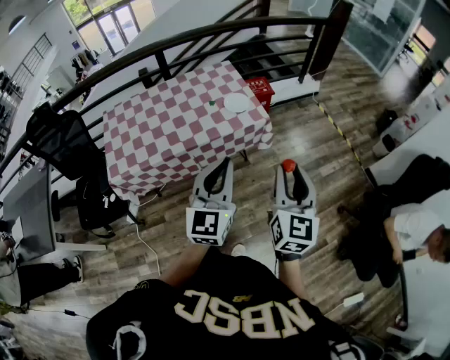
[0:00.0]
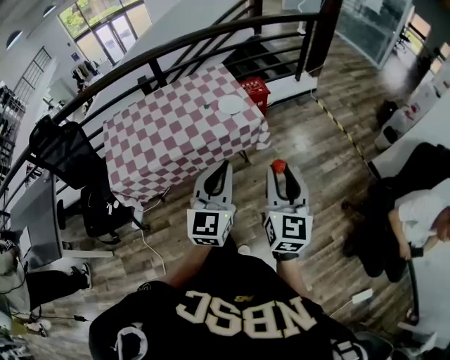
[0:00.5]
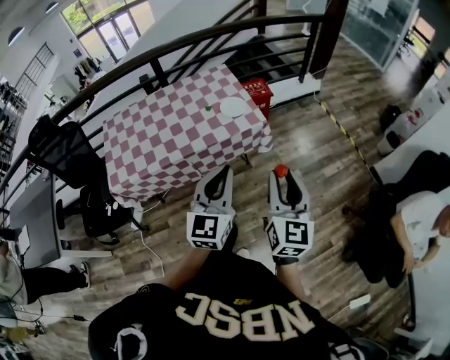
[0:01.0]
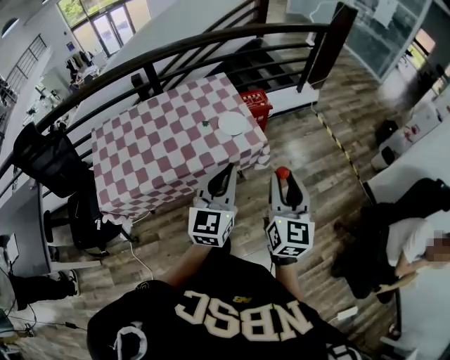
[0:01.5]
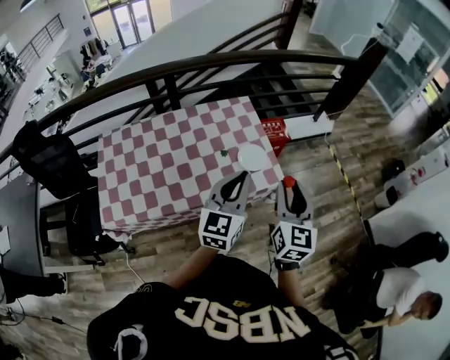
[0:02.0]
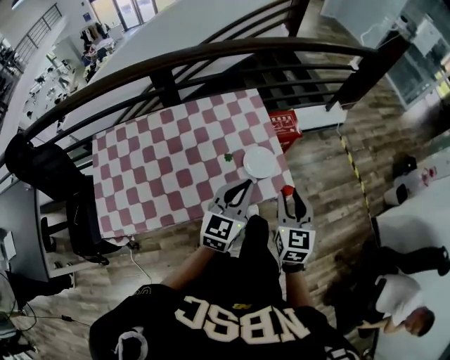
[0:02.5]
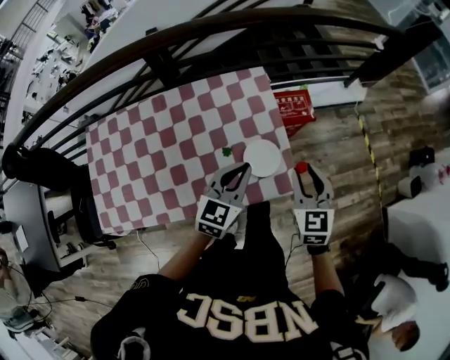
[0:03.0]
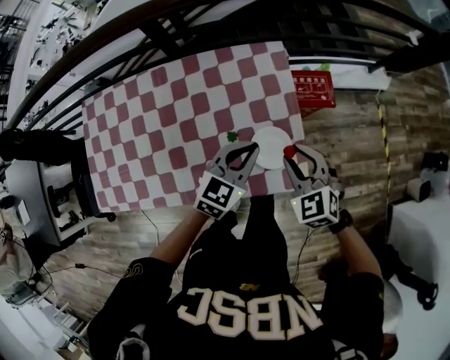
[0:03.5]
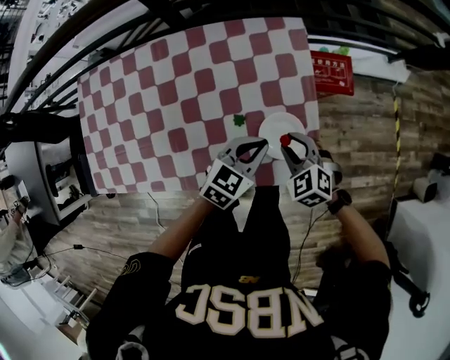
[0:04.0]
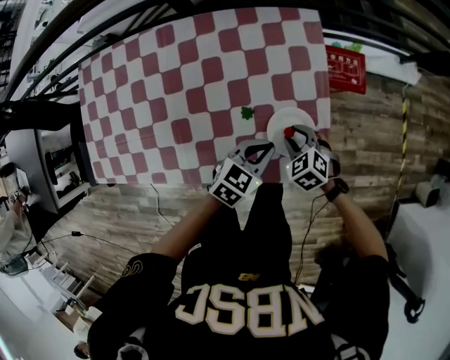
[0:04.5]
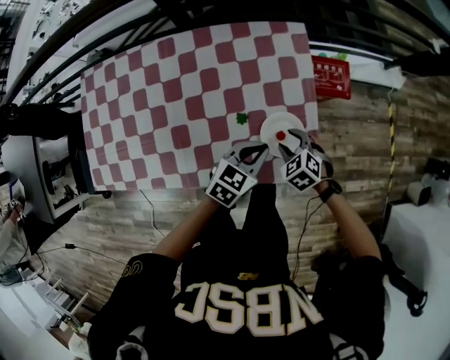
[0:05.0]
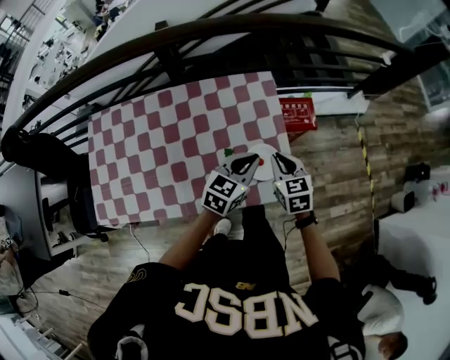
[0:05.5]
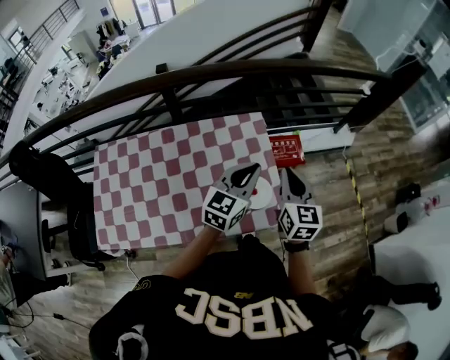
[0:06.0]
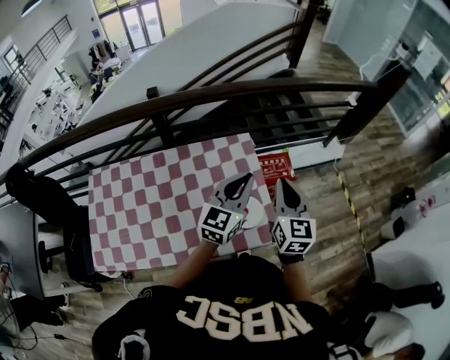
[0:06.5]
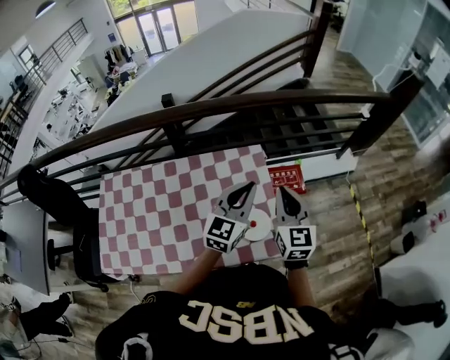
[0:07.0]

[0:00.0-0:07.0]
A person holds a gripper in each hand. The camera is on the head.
0:00.0 to 0:02.0: Both grippers move forward, about 30 cm.
0:02.0 to 0:03.5: Both grippers travel together forward and downward, approximately 35 cm. The left gripper changes its angle by roughly 30 degrees; the right gripper tips its fingers downward by some 30 degrees.
0:03.5 to 0:05.0: The left gripper moves downward, roughly 10 cm. Meanwhile the right gripper is displaced downward by some 20 cm, and rotates approximately 20 degrees.
0:05.0 to 0:07.0: The grippers both shift upward by about 35 cm. The right gripper points its fingers roughly 50 degrees further upward, and closes its fingers; the left gripper tilts its fingers some 30 degrees upward.

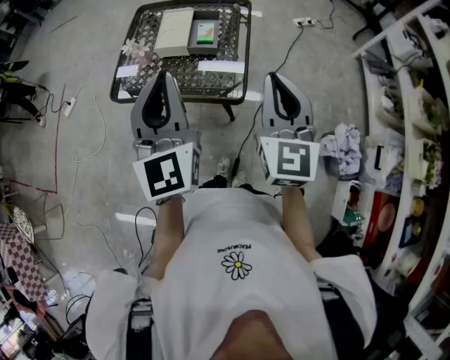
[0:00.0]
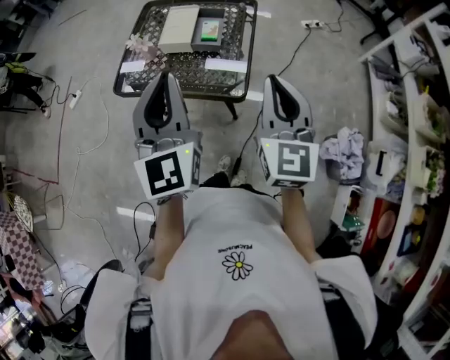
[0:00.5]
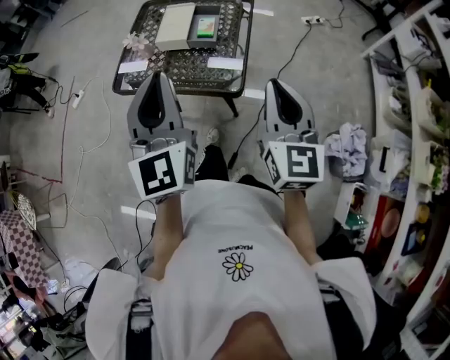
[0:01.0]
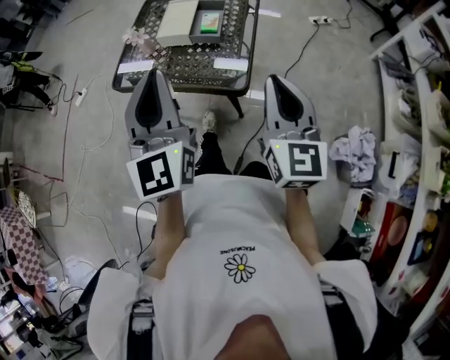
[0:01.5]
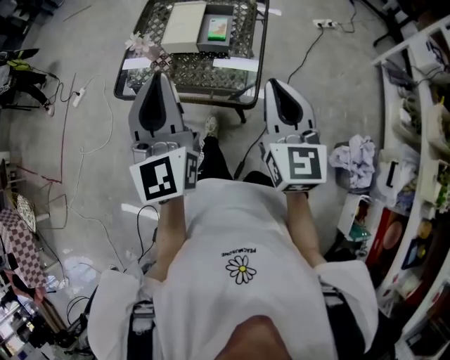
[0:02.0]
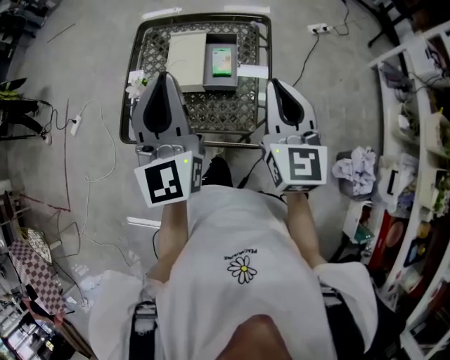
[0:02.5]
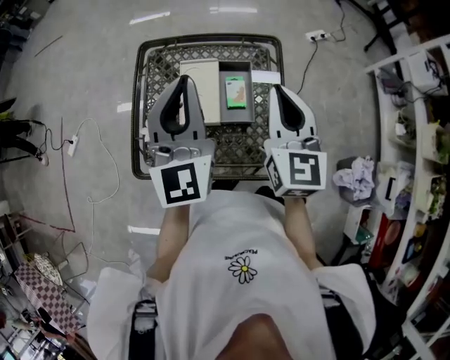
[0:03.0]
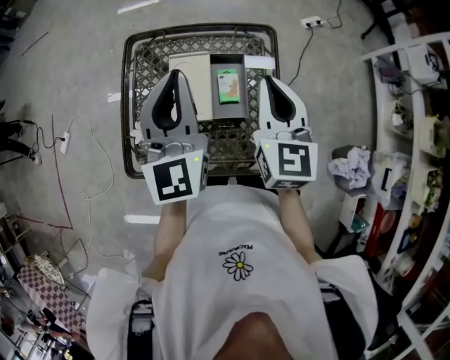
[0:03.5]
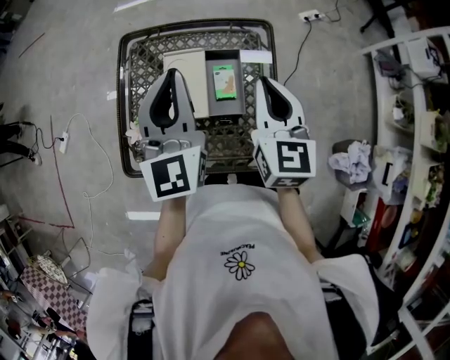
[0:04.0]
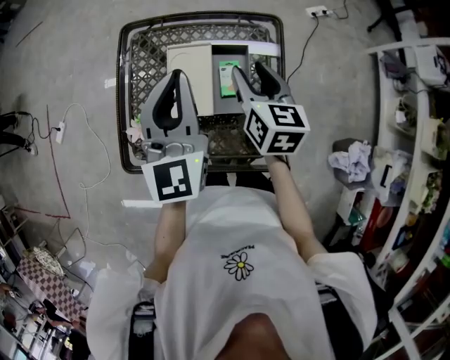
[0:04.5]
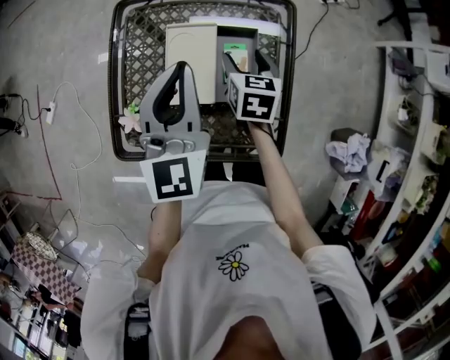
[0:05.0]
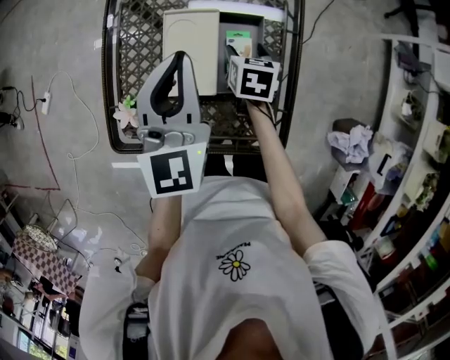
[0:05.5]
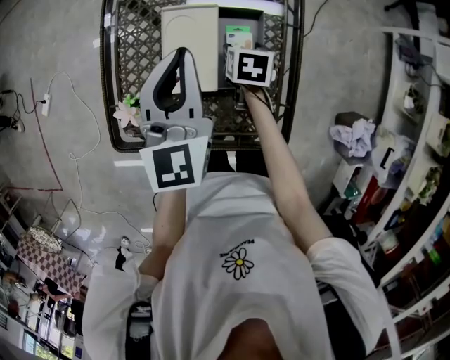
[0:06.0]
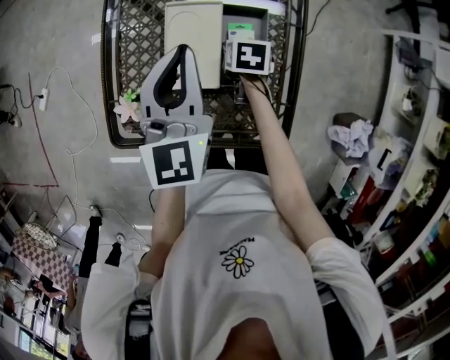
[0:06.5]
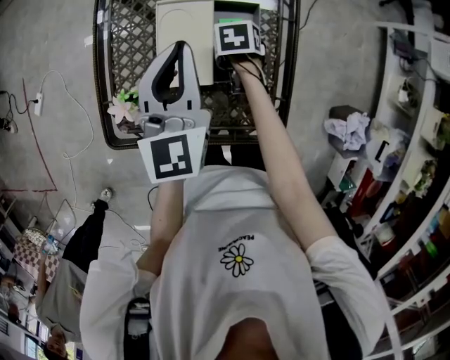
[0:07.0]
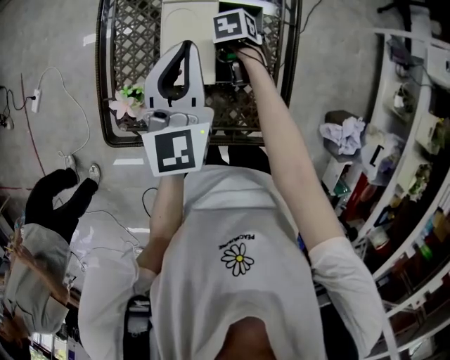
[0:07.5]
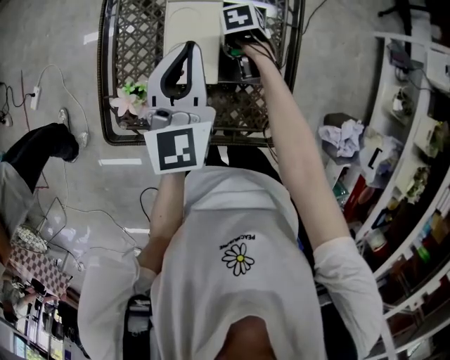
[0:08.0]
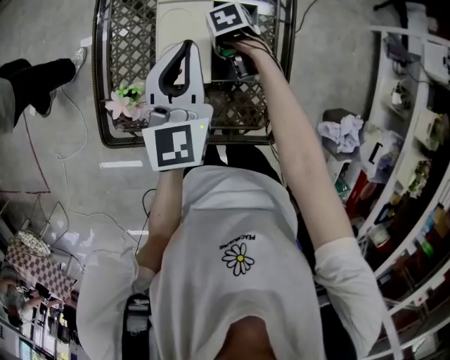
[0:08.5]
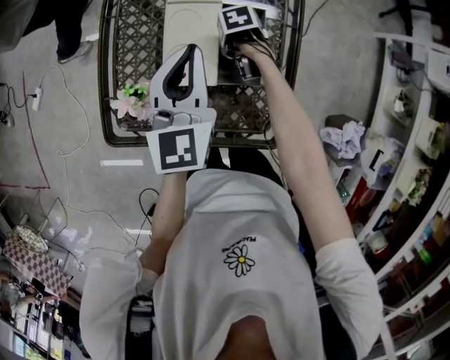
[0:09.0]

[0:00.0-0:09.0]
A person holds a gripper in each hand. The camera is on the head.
0:00.0 to 0:02.0: The right gripper shifts roughly 5 cm downward. Meanwhile the left gripper ends up about 5 cm from where it was.
0:02.0 to 0:04.5: Both grippers travel together forward, some 35 cm. The right gripper turns by approximately 30 degrees, and opens its fingers.
0:04.5 to 0:07.0: The left gripper goes some 10 cm downward; the right gripper is displaced downward by some 25 cm, and angles its fingers downward, by approximately 50 degrees.
0:07.0 to 0:09.0: The grippers stay close to where they were, moving slightly.

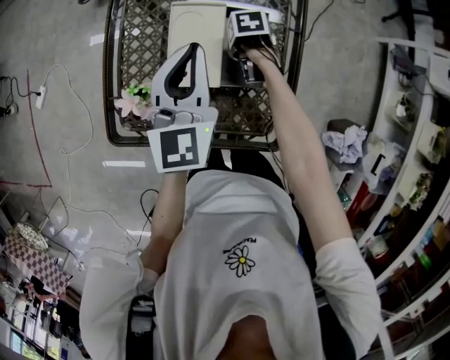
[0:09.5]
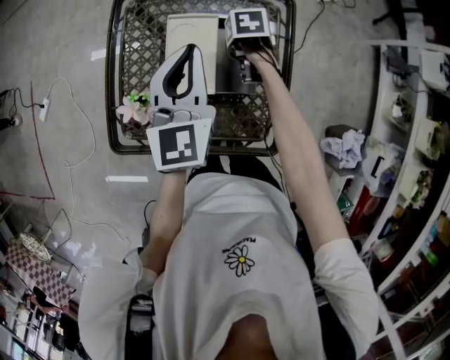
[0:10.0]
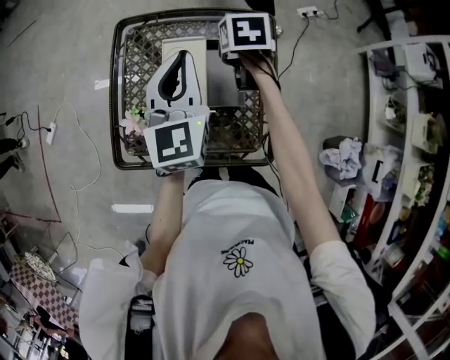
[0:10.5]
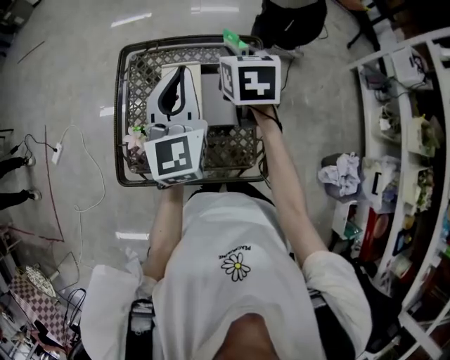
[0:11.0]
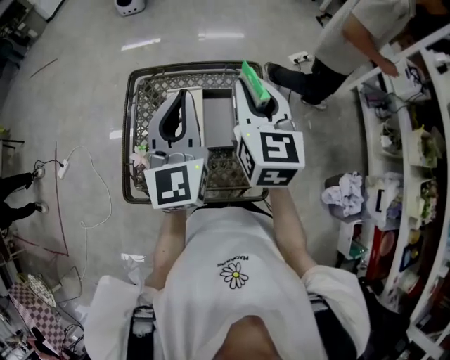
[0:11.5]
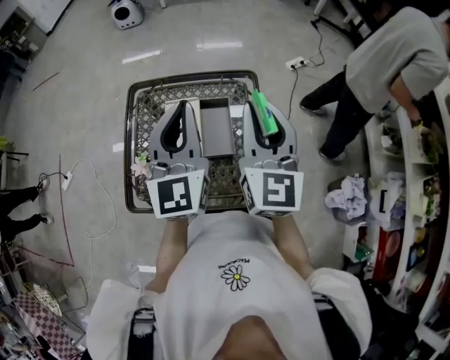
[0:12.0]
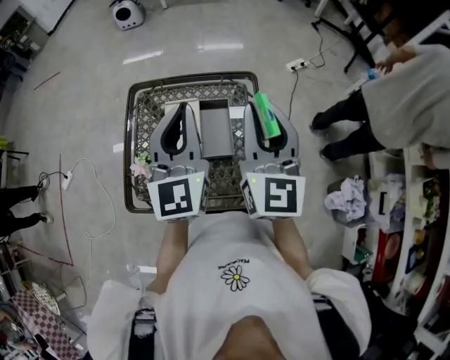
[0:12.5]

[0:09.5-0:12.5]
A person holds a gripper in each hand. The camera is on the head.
0:09.5 to 0:11.0: The right gripper is displaced upward by about 35 cm, and tips its fingers upward by roughly 40 degrees. Meanwhile the left gripper travels upward by roughly 15 cm.
0:11.0 to 0:12.5: The right gripper moves upward, backward and to the right, some 20 cm, and angles its fingers upward, by approximately 40 degrees; the left gripper is displaced upward by roughly 5 cm.

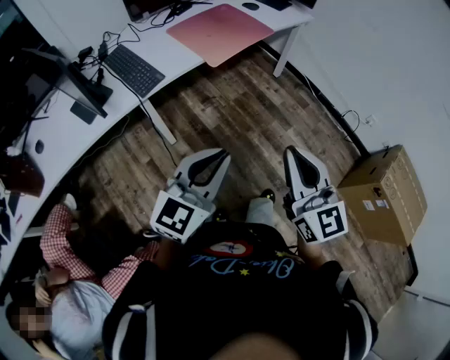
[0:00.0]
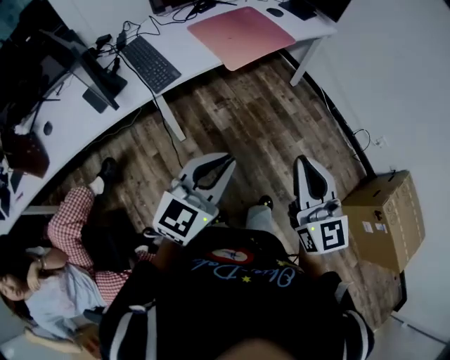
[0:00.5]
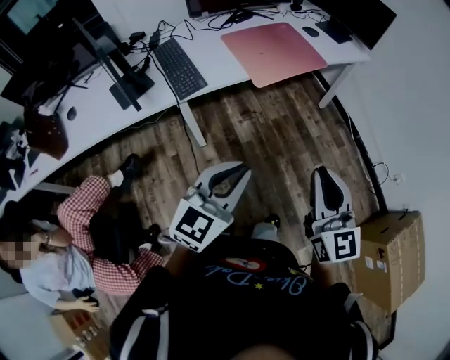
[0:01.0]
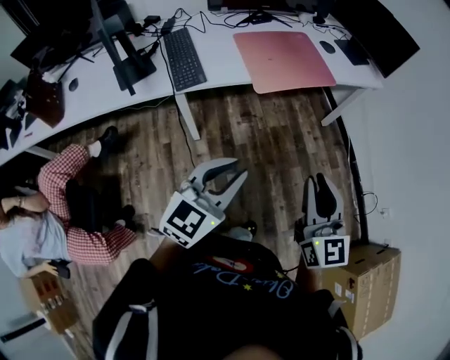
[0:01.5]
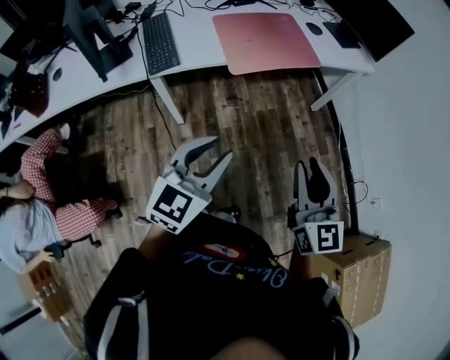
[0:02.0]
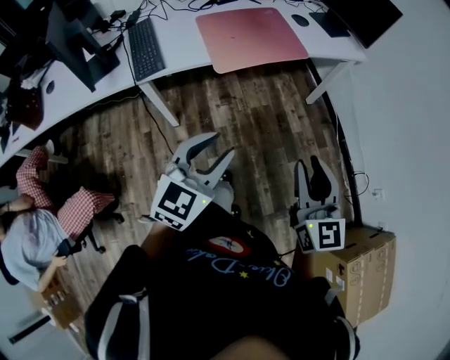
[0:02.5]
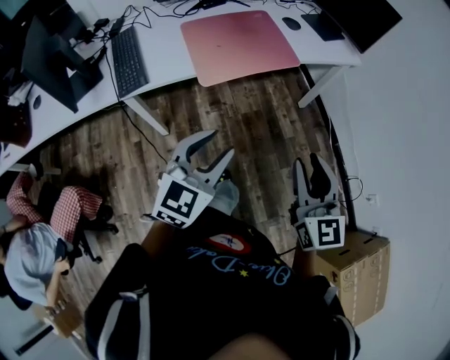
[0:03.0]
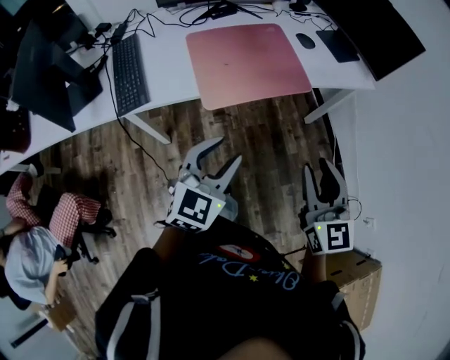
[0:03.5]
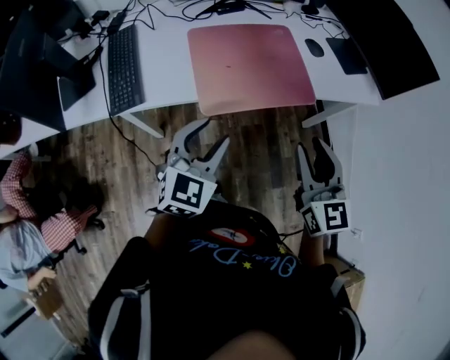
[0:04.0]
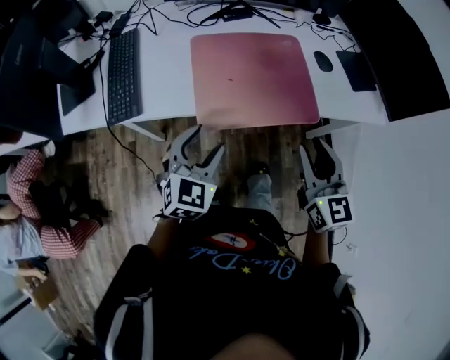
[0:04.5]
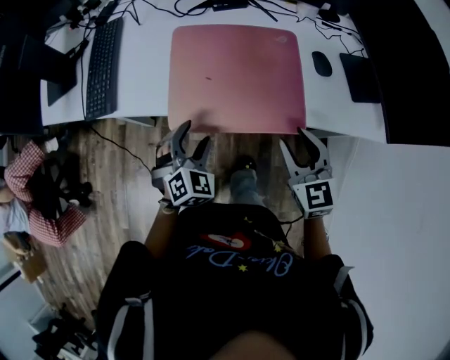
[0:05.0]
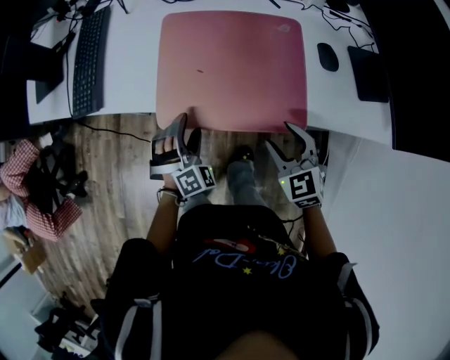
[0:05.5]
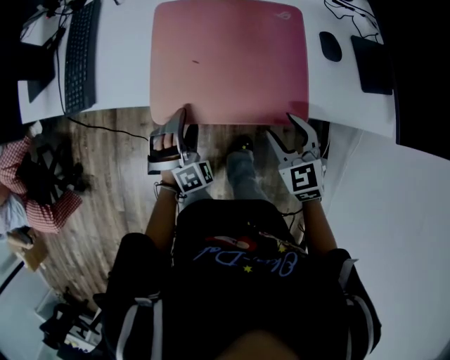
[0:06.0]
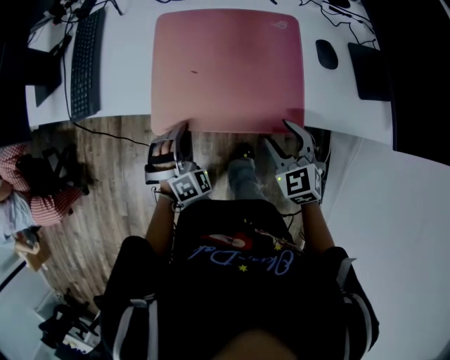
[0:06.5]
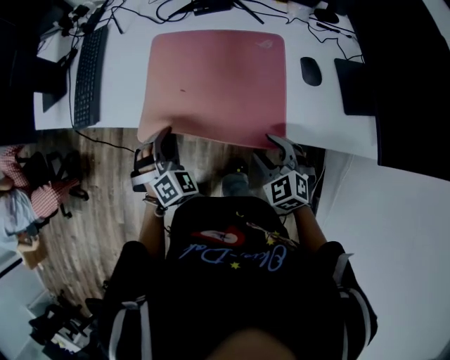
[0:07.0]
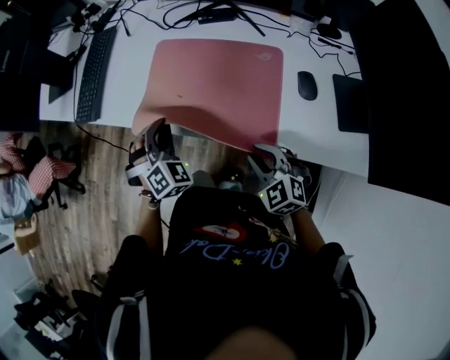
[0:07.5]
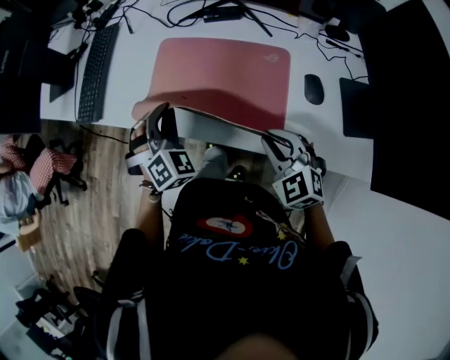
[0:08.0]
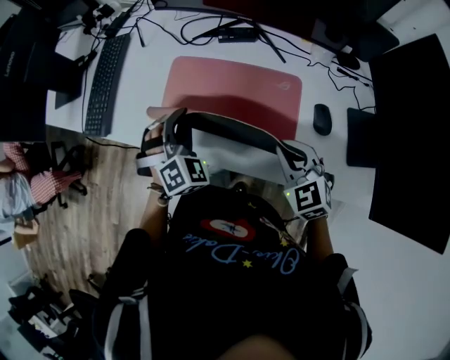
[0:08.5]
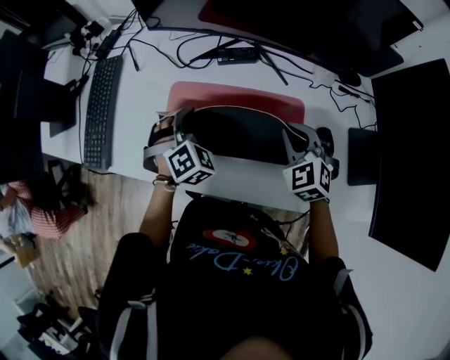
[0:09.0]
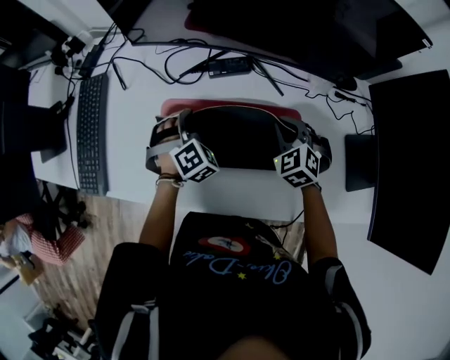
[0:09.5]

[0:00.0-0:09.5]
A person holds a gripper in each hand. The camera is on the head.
0:00.0 to 0:02.0: Both grippers travel together forward and to the right, roughly 20 cm. The left gripper rotates roughly 30 degrees.
0:02.0 to 0:04.0: The grippers both shift forward by about 30 cm.
0:04.0 to 0:05.5: The grippers both shift downward by approximately 20 cm. The right gripper turns by about 40 degrees, and opens its fingers. Meanwhile the left gripper swivels some 50 degrees, and opens.
0:05.5 to 0:07.5: The right gripper rotates approximately 20 degrees, and closes. The left gripper shifts roughly 10 cm upward and forward, and closes up.
0:07.5 to 0:09.5: Both grippers move forward, about 25 cm. The right gripper swivels about 20 degrees.
